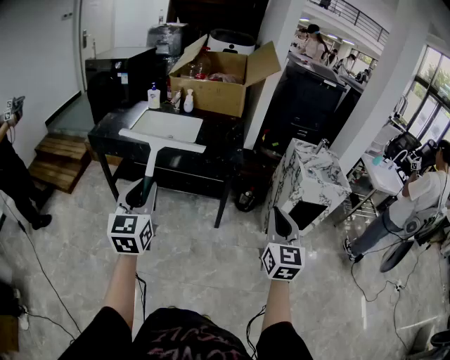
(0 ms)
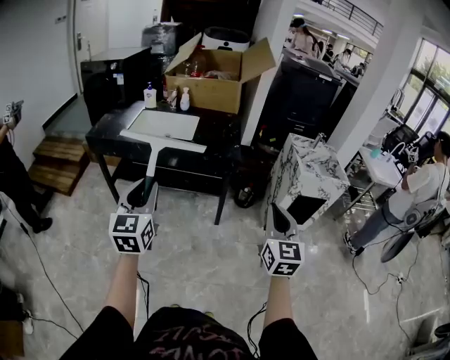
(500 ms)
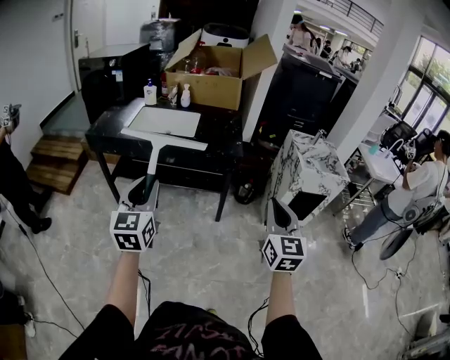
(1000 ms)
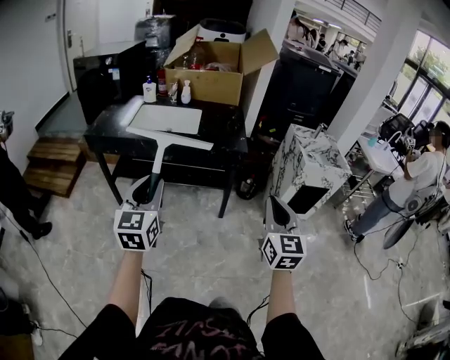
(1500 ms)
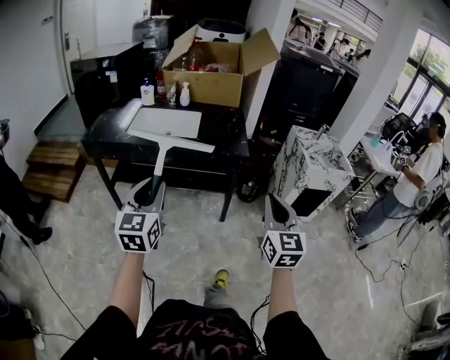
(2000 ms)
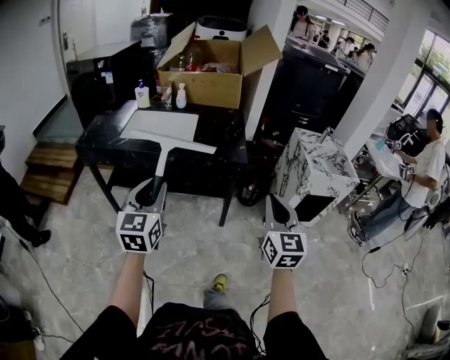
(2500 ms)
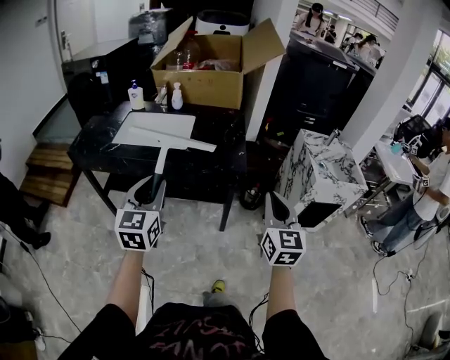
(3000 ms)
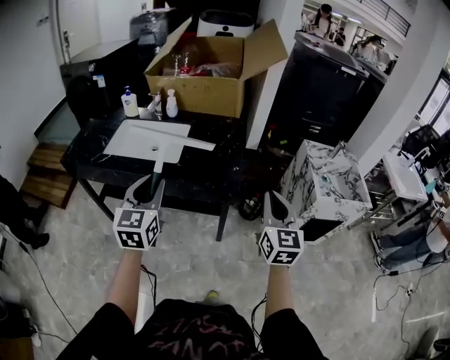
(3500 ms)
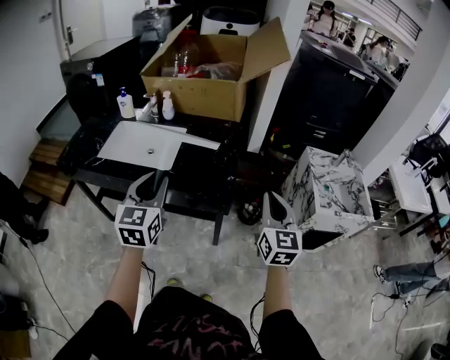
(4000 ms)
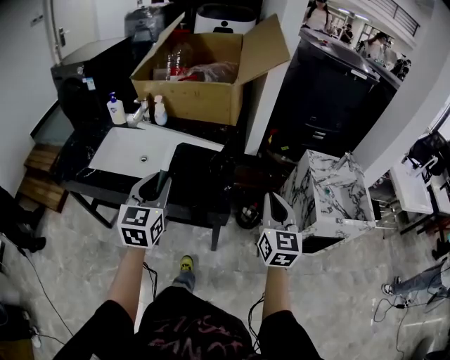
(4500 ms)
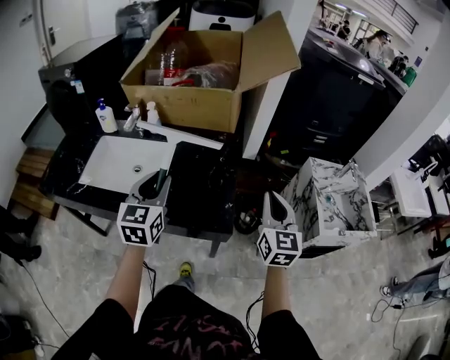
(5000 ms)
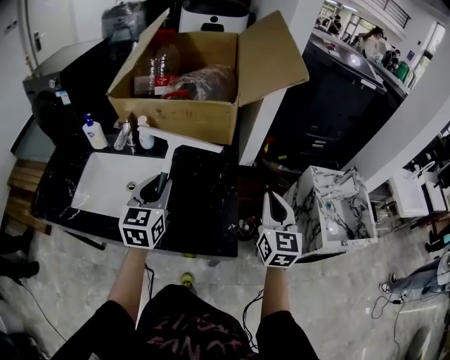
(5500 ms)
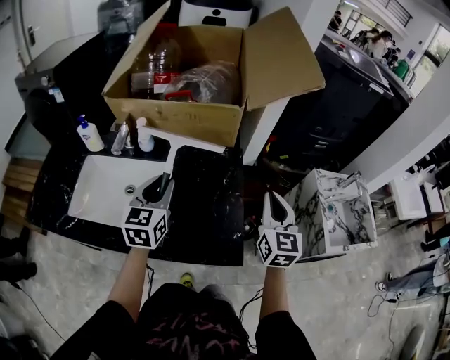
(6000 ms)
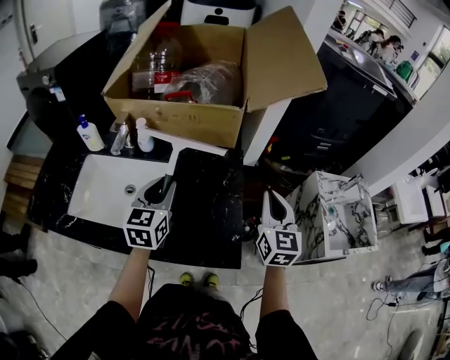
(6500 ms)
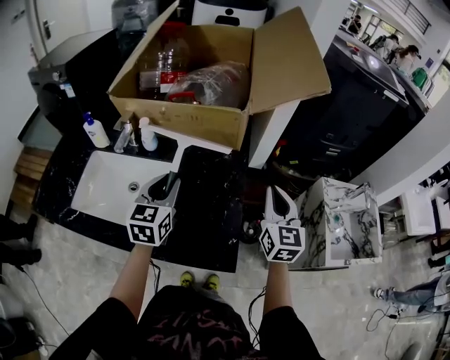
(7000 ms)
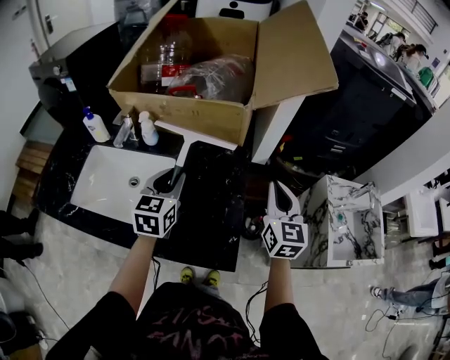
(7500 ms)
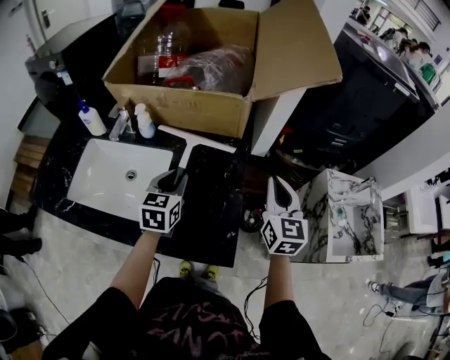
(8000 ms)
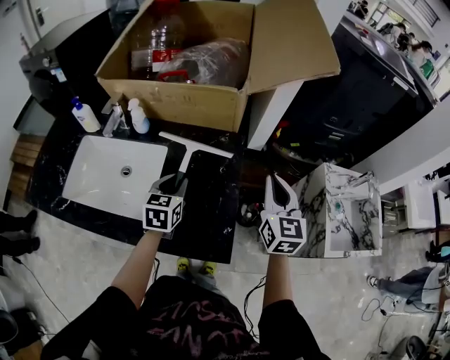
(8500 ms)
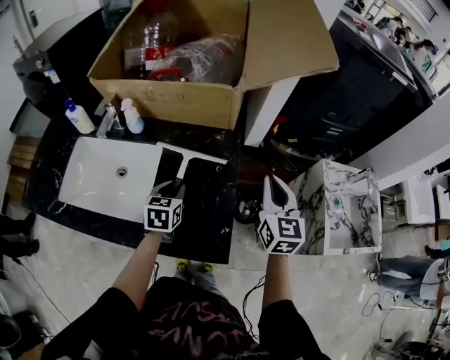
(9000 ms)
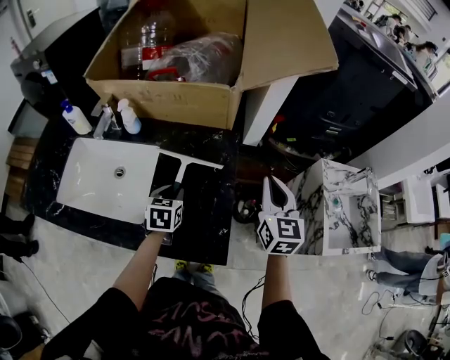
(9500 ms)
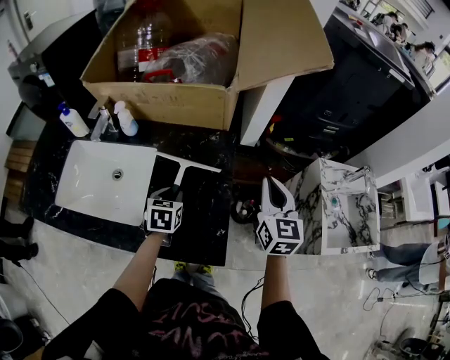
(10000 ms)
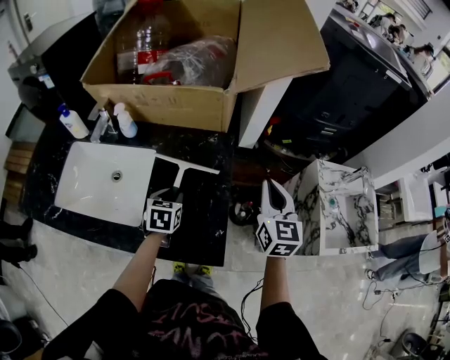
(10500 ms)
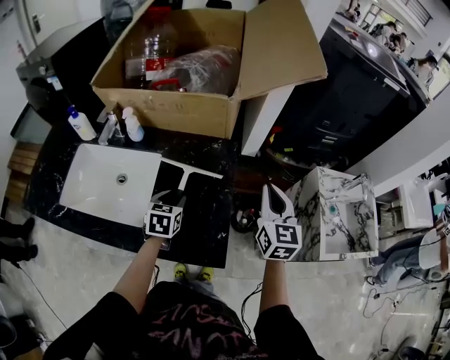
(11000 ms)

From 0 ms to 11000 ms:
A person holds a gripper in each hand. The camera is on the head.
From 0 ms to 2000 ms: The right gripper is displaced to the left by approximately 10 cm; the left gripper shifts by roughly 5 cm.
From 2000 ms to 3500 ms: Both grippers move forward, roughly 25 cm.
From 3500 ms to 5500 ms: The grippers both shift forward by some 30 cm.
From 5500 ms to 7500 ms: The two grippers go approximately 10 cm forward.
From 7500 ms to 9000 ms: The left gripper travels downward by approximately 15 cm.
From 9000 ms to 11000 ms: The grippers make only small movements.

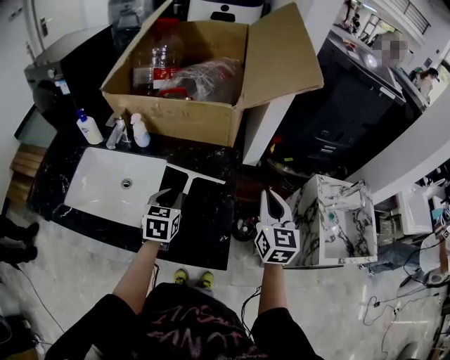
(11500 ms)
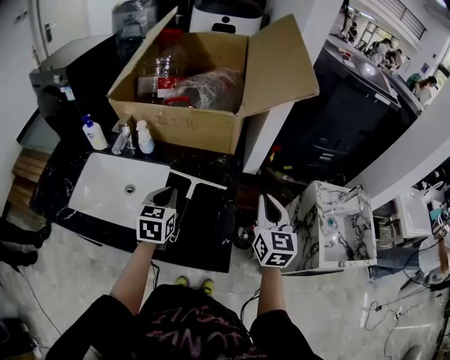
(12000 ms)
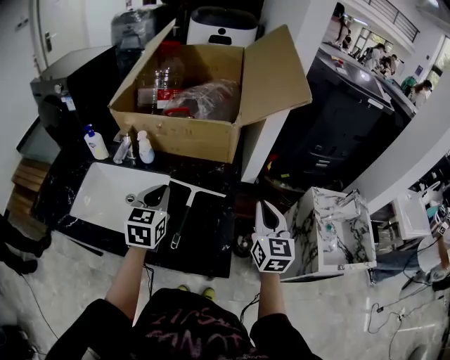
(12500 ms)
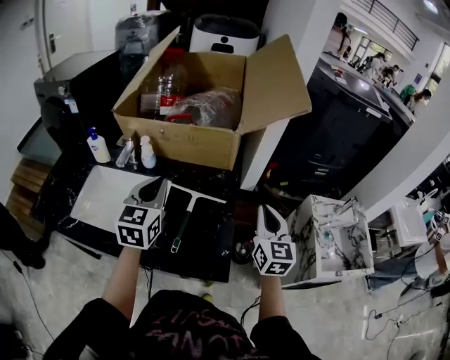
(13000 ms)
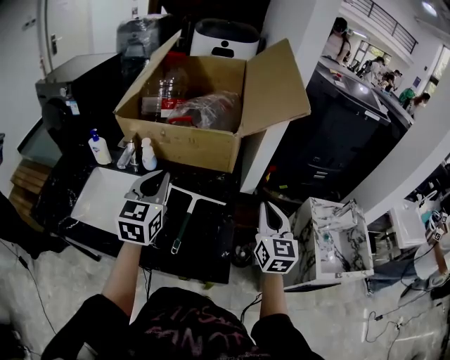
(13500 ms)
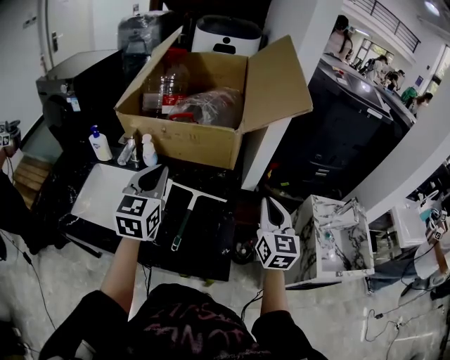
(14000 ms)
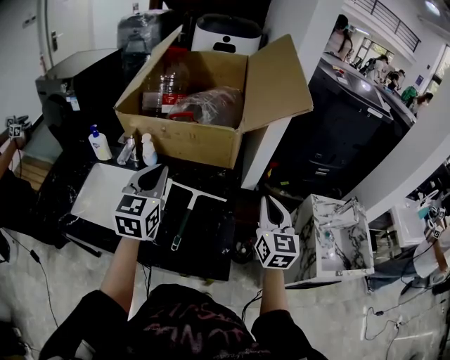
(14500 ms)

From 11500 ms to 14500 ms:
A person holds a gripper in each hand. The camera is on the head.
From 11500 ms to 13000 ms: The left gripper goes approximately 20 cm upward, and changes its angle by approximately 20 degrees.
From 13000 ms to 14500 ms: The grippers move only a little.

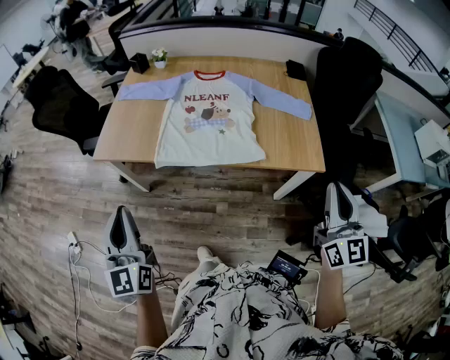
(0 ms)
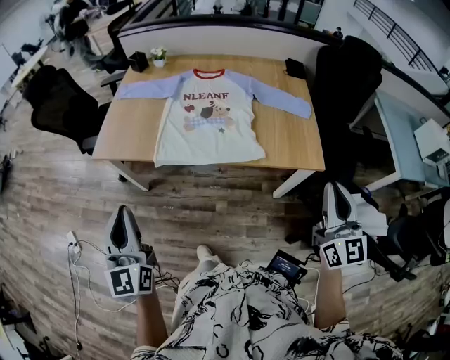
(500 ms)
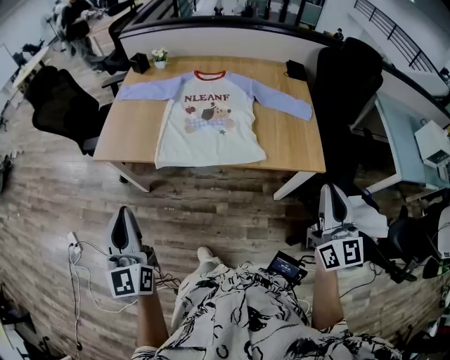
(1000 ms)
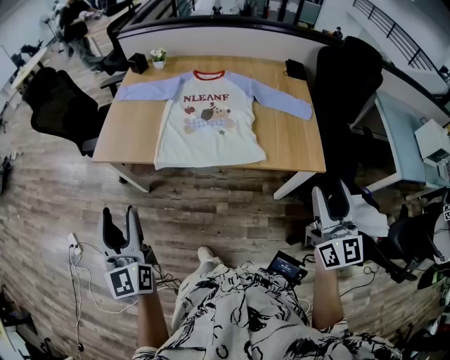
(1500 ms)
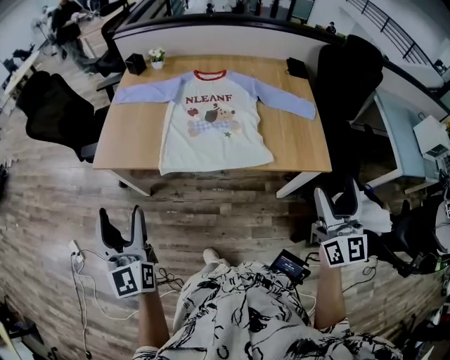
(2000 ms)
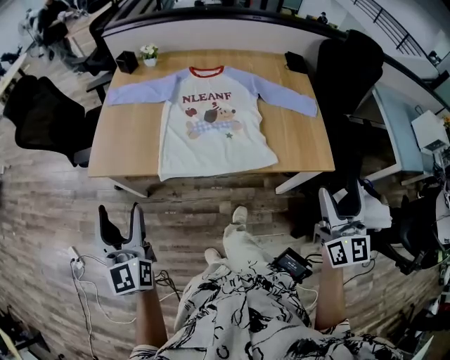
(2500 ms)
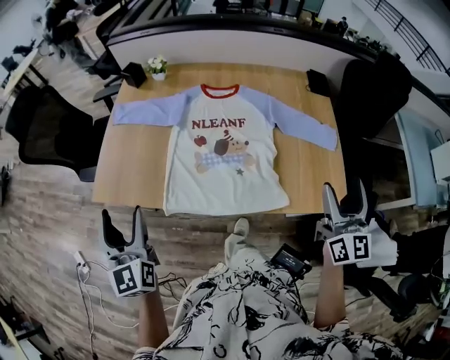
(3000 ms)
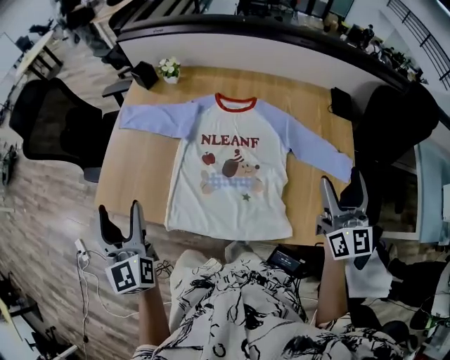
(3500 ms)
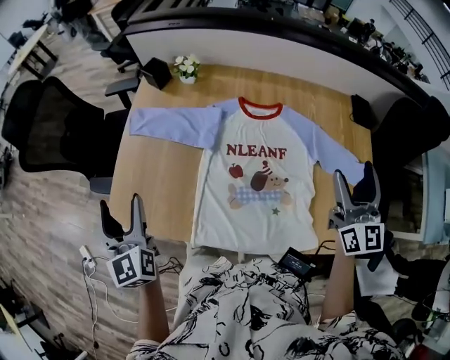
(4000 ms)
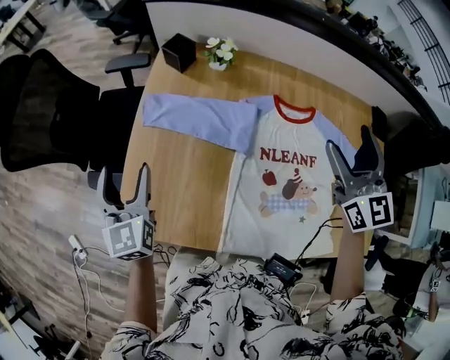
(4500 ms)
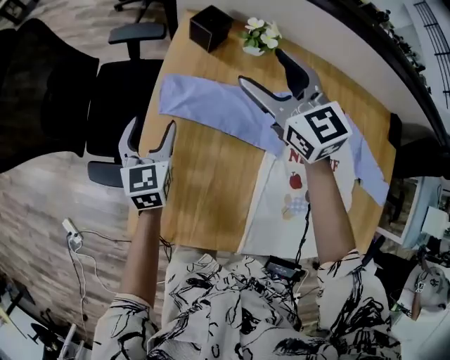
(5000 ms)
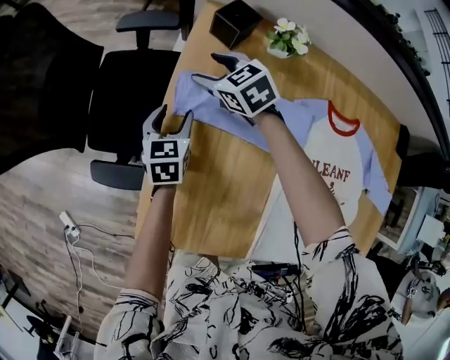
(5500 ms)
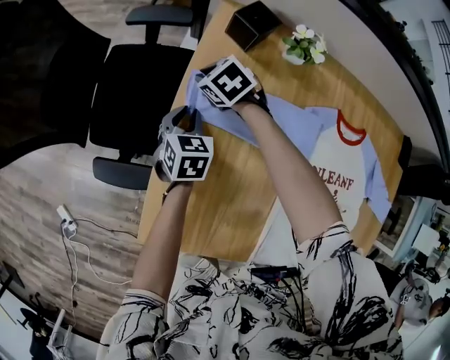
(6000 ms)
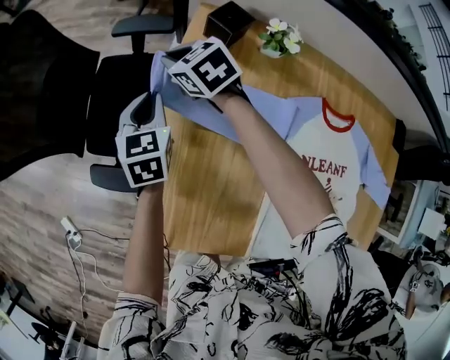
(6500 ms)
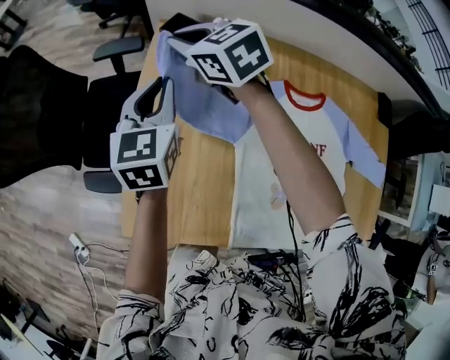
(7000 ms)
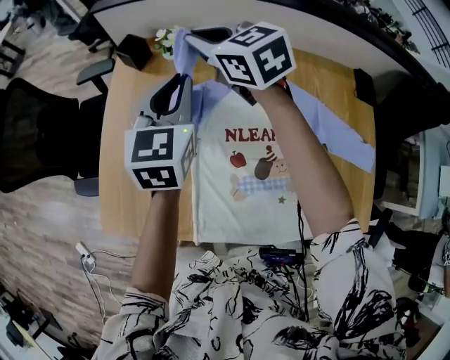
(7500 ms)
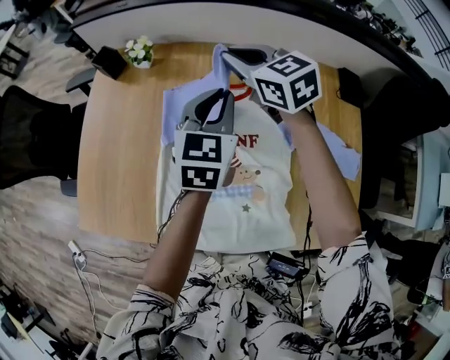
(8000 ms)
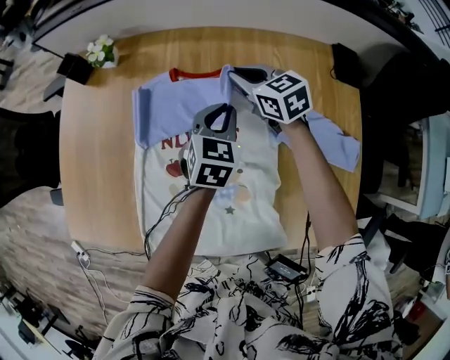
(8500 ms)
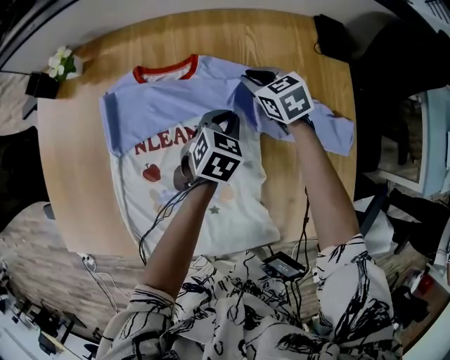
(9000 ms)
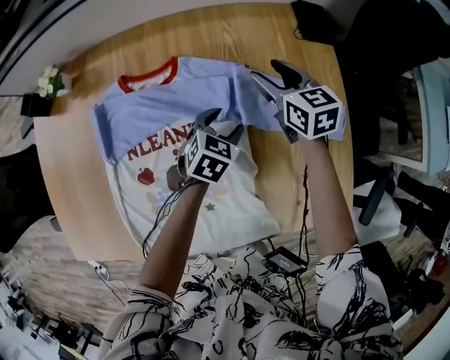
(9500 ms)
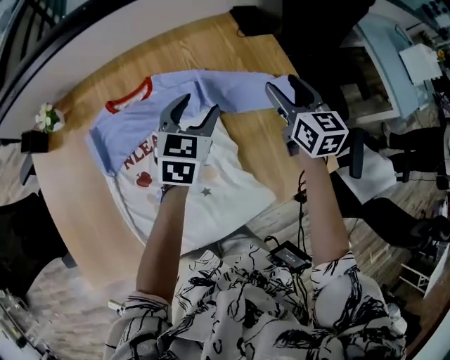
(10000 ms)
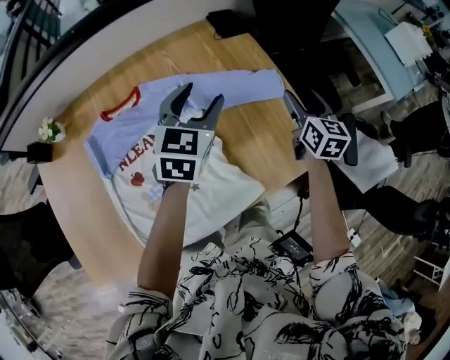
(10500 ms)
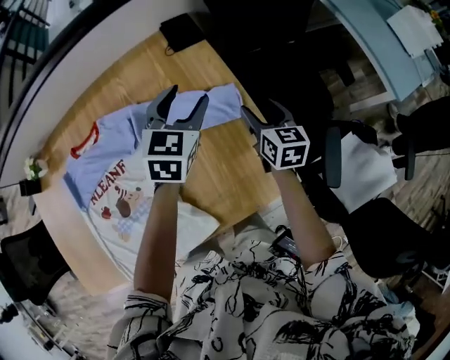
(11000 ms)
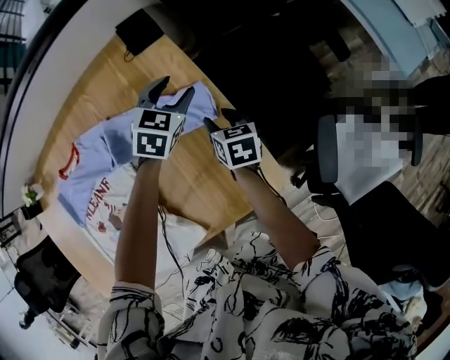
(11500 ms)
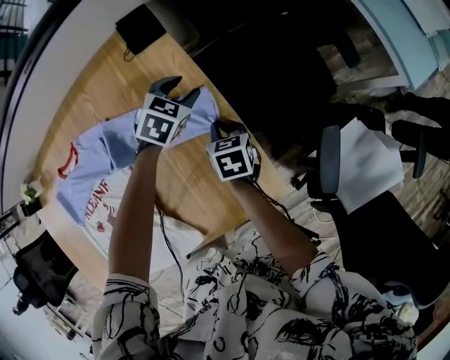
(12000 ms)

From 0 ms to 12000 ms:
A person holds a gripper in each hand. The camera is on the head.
From 0 ms to 2000 ms: The right gripper moves approximately 5 cm, and opens its fingers; the left gripper is displaced forward by approximately 5 cm, and opens up.
From 2000 ms to 4000 ms: The two grippers travel together, forward, about 50 cm.
From 4000 ms to 6000 ms: The right gripper goes approximately 90 cm forward, to the left and downward, points its fingers about 60 degrees further downward, and closes up; the left gripper is displaced forward and downward by roughly 50 cm, points its fingers approximately 40 degrees further downward, and closes up.
From 6000 ms to 8000 ms: Both grippers are carried to the right and backward, some 50 cm. The two grippers go some 30 cm upward. The right gripper tips its fingers upward by approximately 40 degrees; the left gripper turns by some 30 degrees.
From 8000 ms to 10000 ms: The right gripper travels downward and back again, roughly 25 cm each way, rotates about 60 degrees, and opens. The left gripper moves about 25 cm downward and comes back, changes its angle by some 30 degrees, and opens its fingers.
From 10000 ms to 12000 ms: The right gripper travels downward and to the right by about 30 cm, tilts its fingers roughly 30 degrees downward, and closes; the left gripper shifts roughly 40 cm to the right, forward and downward, and turns by approximately 40 degrees.
